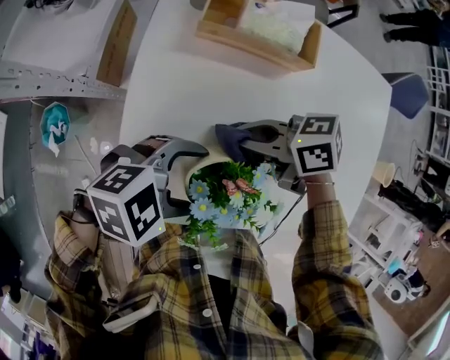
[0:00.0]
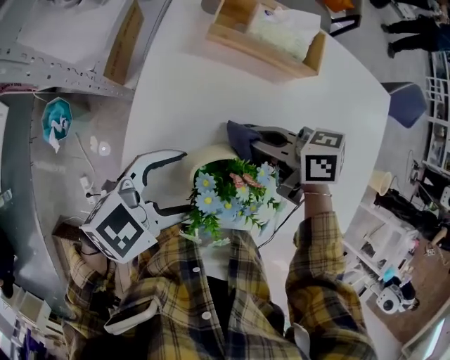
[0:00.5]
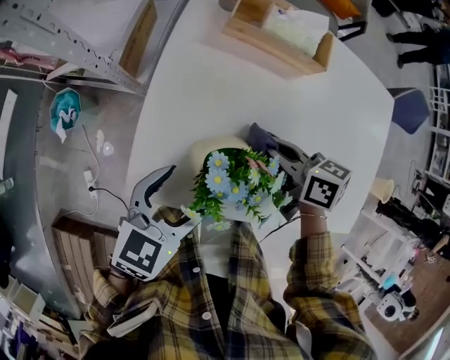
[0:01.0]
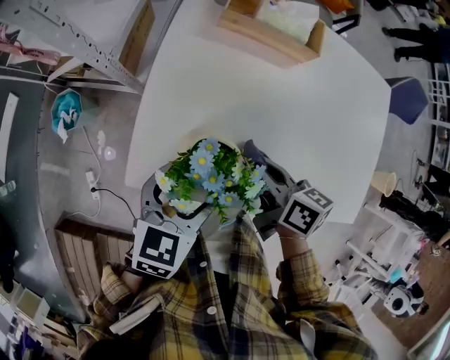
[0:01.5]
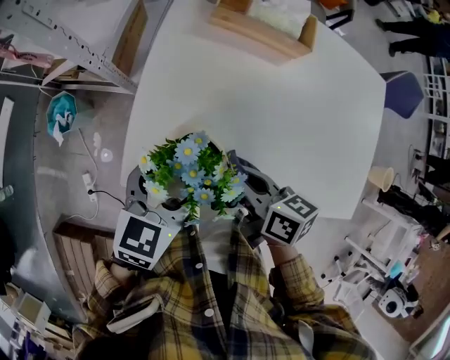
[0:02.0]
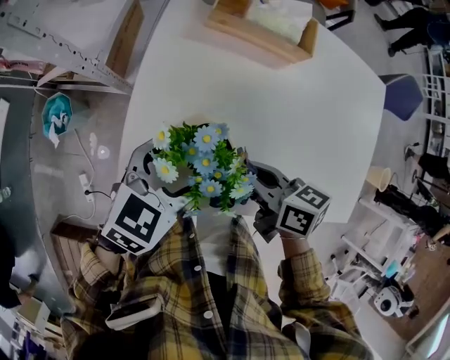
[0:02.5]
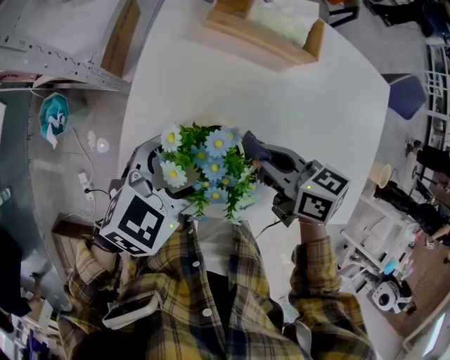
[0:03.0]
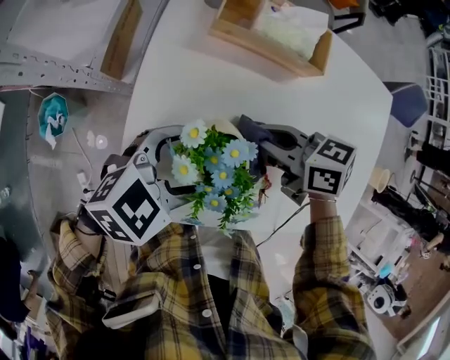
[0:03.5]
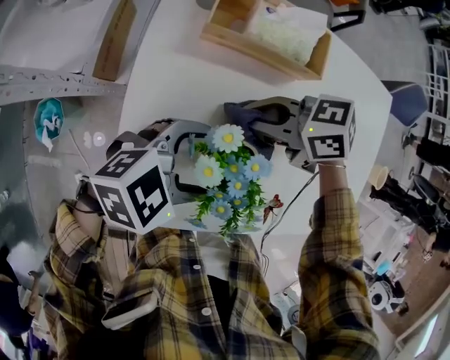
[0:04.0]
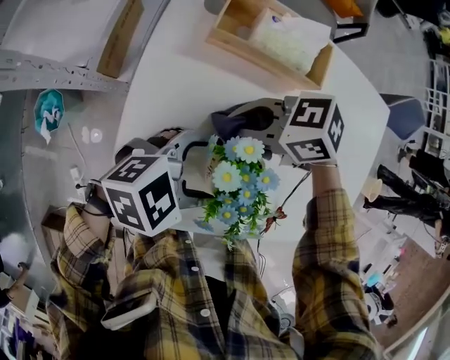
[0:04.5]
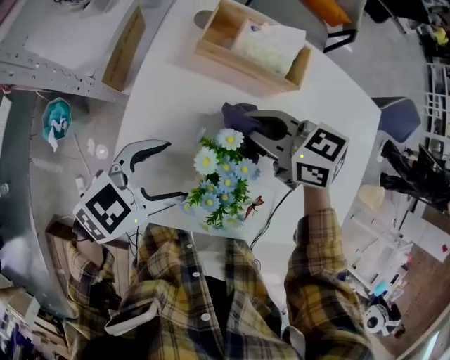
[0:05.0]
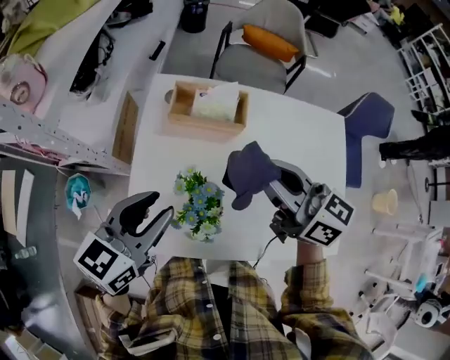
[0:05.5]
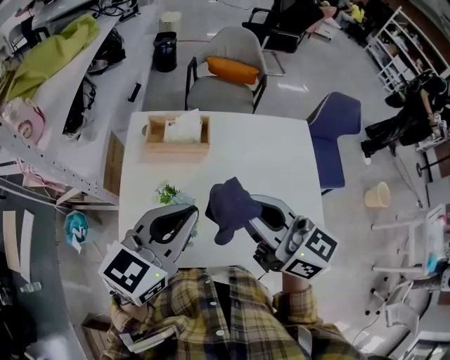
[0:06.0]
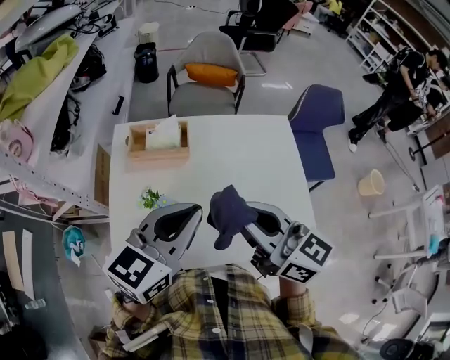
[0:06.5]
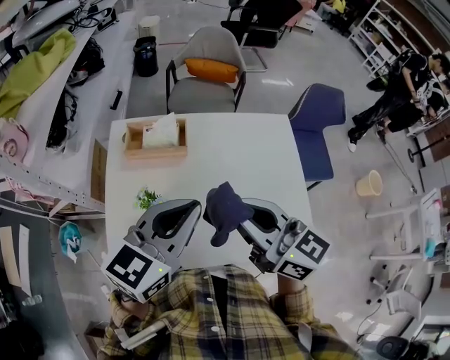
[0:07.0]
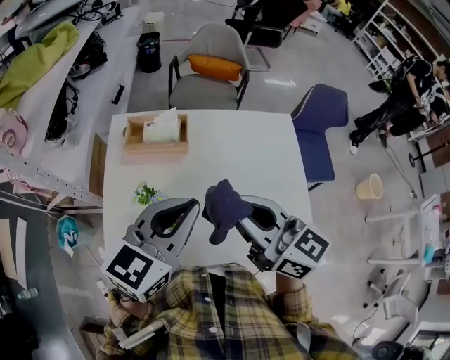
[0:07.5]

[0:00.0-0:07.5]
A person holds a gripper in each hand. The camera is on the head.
0:00.0 to 0:02.0: The left gripper shifts by about 5 cm, and turns by about 60 degrees; the right gripper moves some 10 cm, and turns by approximately 40 degrees.
0:02.0 to 0:04.0: The right gripper moves approximately 15 cm, and swivels about 50 degrees. The left gripper moves some 10 cm, and changes its angle by about 60 degrees.
0:04.0 to 0:05.5: Both grippers move upward, approximately 20 cm. The right gripper swivels approximately 50 degrees. The left gripper changes its angle by roughly 50 degrees, and closes its fingers.
0:05.5 to 0:07.5: The right gripper is displaced backward, to the right and upward by about 15 cm, while the left gripper is displaced to the right and upward by roughly 20 cm, and closes up.

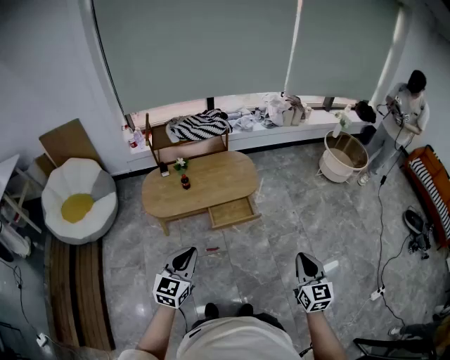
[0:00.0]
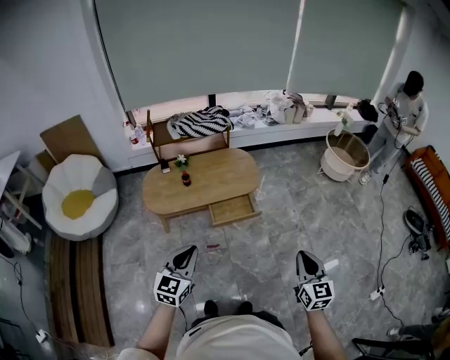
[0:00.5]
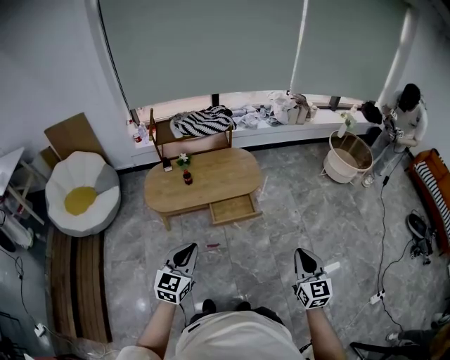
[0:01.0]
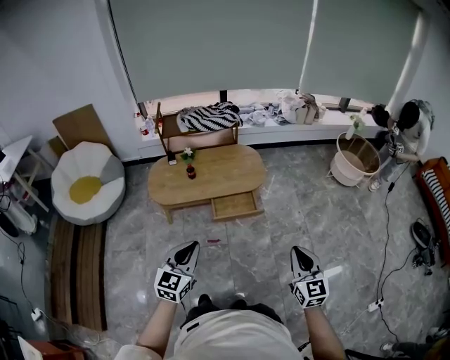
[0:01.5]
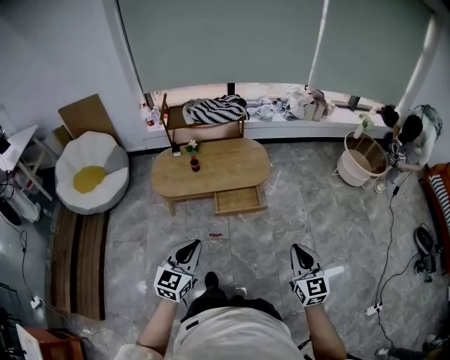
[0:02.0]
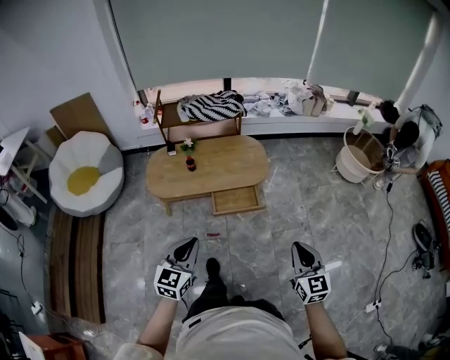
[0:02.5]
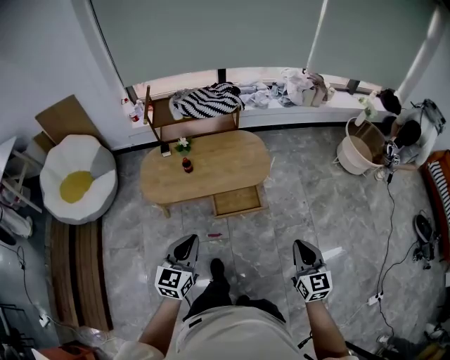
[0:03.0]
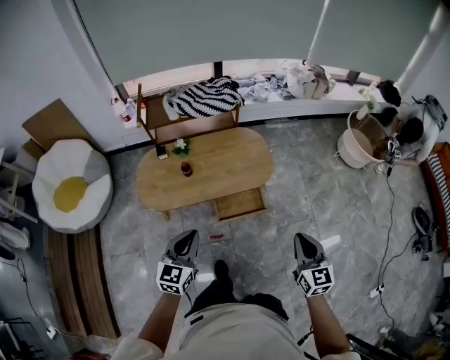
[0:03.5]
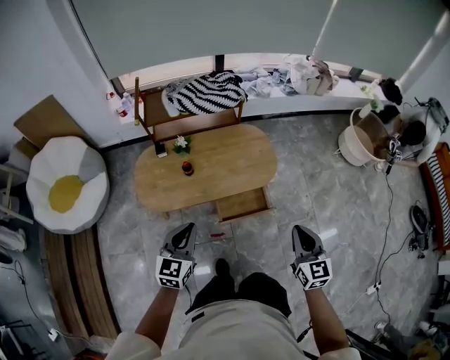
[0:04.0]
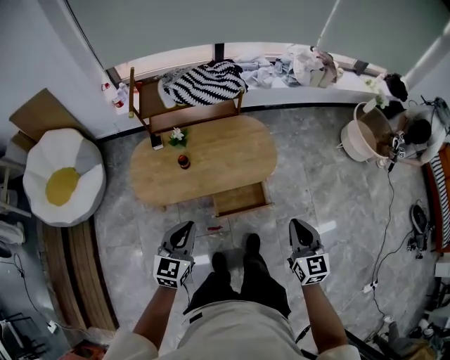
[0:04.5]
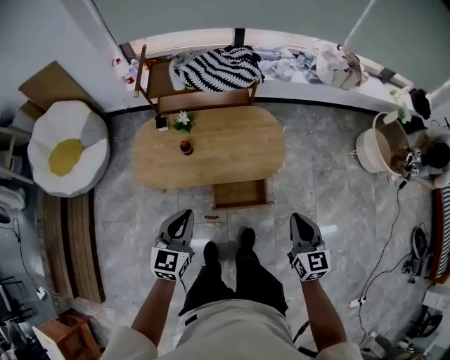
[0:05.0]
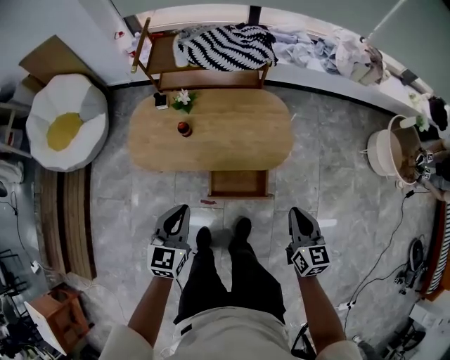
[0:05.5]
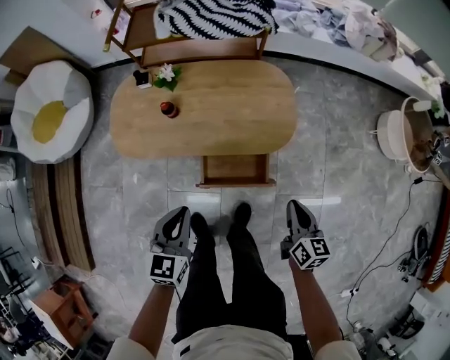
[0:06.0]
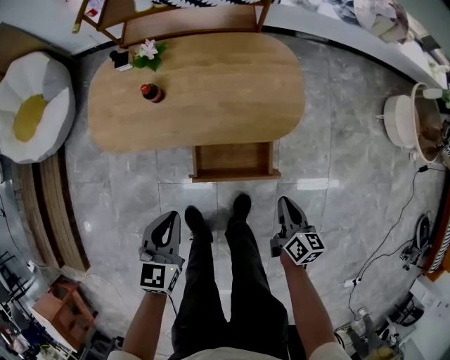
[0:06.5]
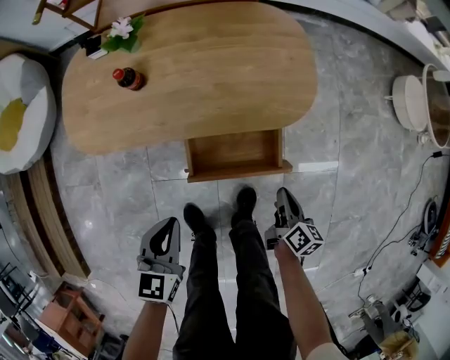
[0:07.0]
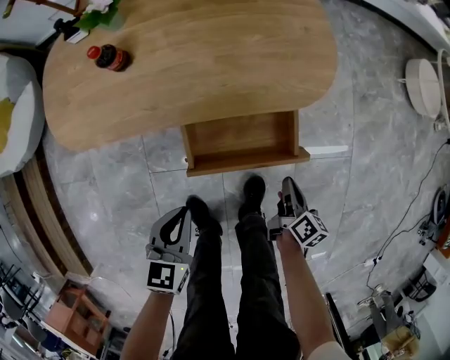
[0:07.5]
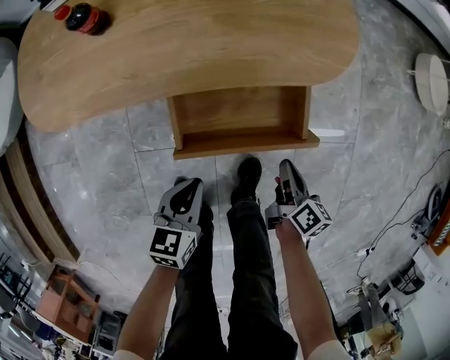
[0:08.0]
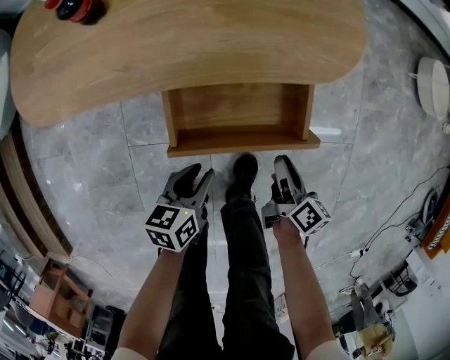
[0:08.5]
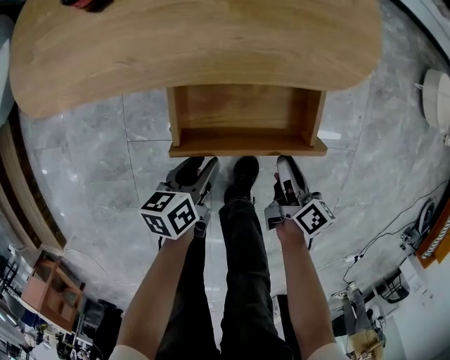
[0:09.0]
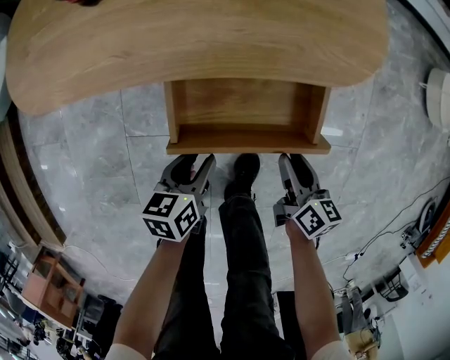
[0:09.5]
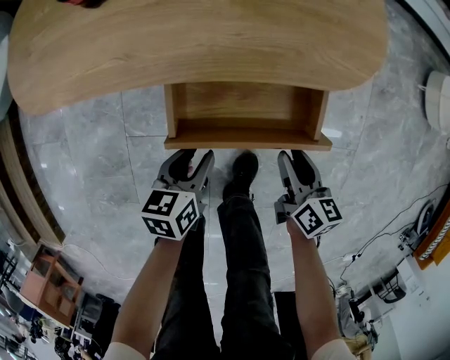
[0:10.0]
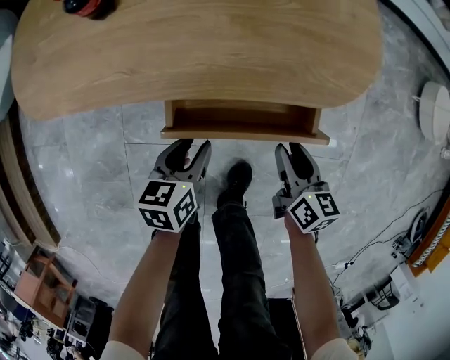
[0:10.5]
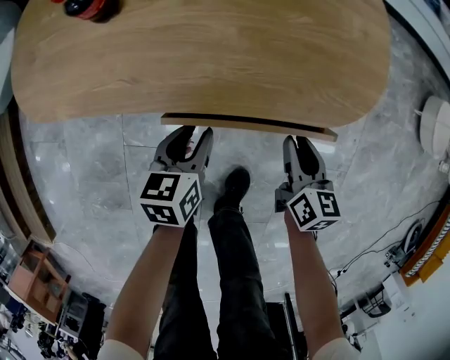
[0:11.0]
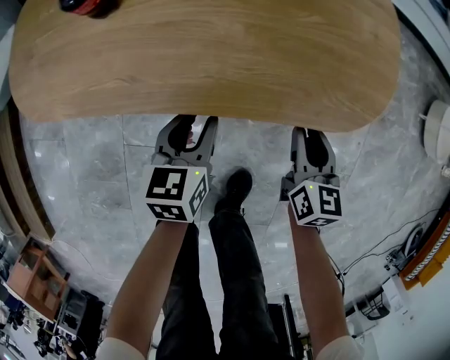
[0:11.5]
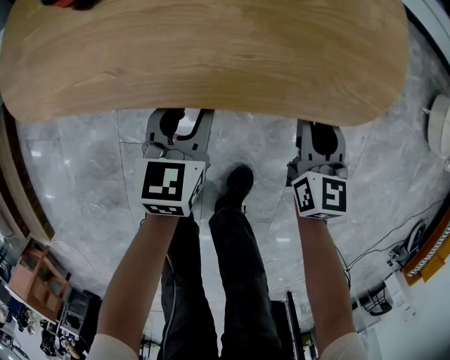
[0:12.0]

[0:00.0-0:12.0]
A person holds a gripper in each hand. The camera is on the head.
0:00.0 to 0:02.0: The left gripper goes approximately 5 cm to the right.
0:02.0 to 0:04.0: The grippers both shift forward and to the left by approximately 35 cm.
0:04.0 to 0:06.0: The left gripper goes about 20 cm downward, to the right and forward. The right gripper moves downward, forward and to the right, roughly 30 cm, and changes its angle by roughly 30 degrees.
0:06.0 to 0:08.0: Both grippers move downward, approximately 40 cm. The left gripper changes its angle by roughly 20 degrees. Meanwhile the right gripper rotates some 30 degrees.
0:08.0 to 0:10.0: The left gripper heads downward, covering about 5 cm, and opens up; the right gripper swivels roughly 20 degrees, and opens.
0:10.0 to 0:12.0: Both grippers travel together forward, approximately 15 cm. The right gripper swivels about 30 degrees; the left gripper rotates some 30 degrees.

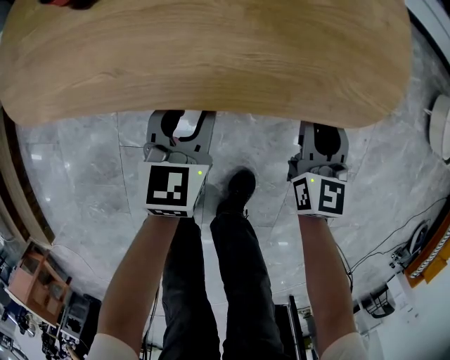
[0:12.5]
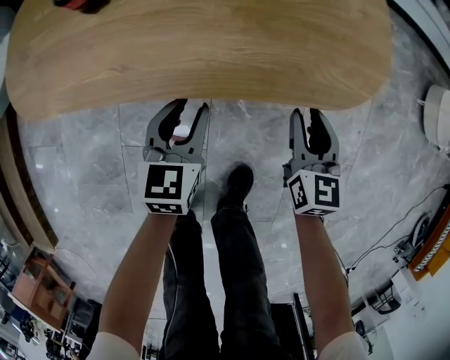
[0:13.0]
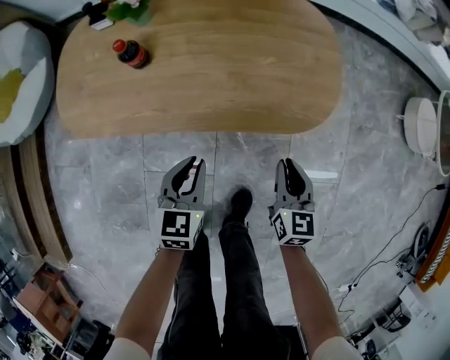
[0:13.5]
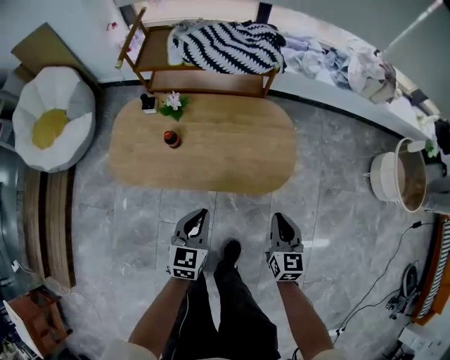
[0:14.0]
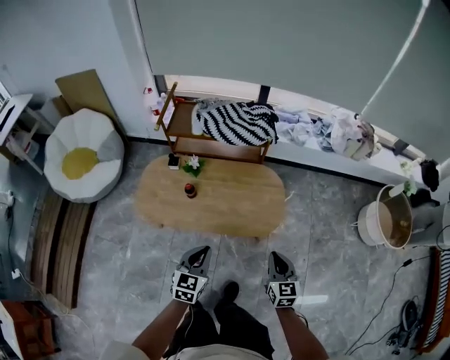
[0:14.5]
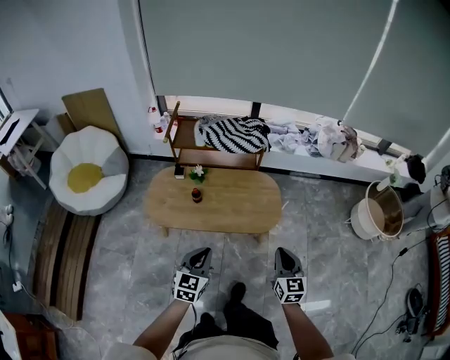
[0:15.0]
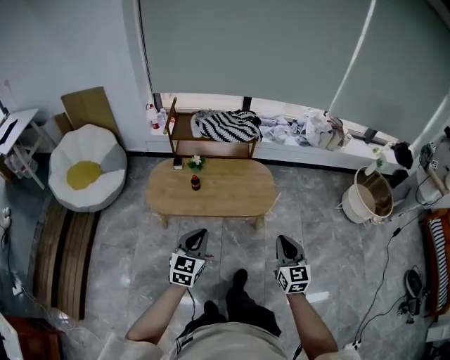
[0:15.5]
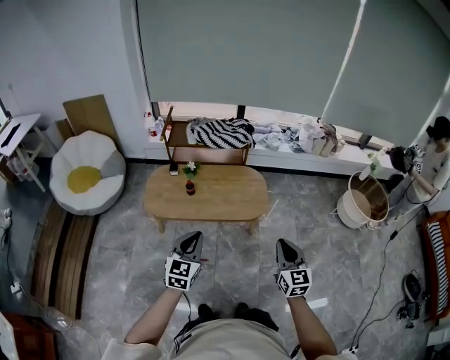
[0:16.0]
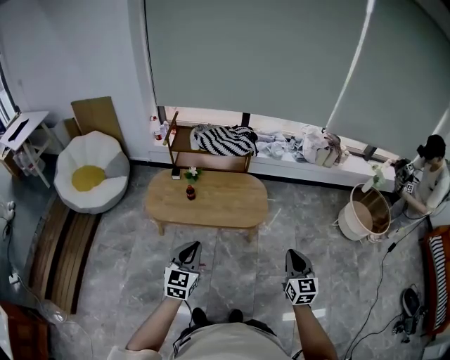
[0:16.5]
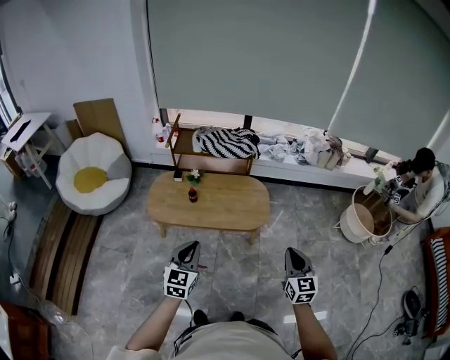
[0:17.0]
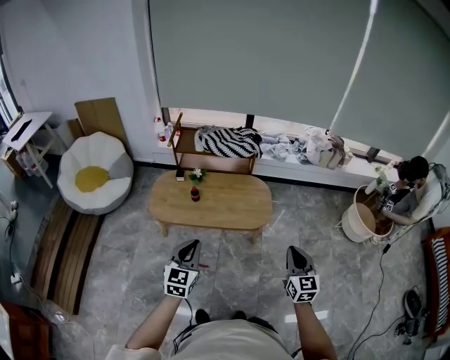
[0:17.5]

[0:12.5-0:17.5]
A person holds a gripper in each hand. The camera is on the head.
0:12.5 to 0:15.0: The two grippers go about 70 cm upward and backward. The right gripper closes up. Meanwhile the left gripper closes its fingers.
0:15.0 to 0:17.5: The left gripper shifts approximately 15 cm backward and upward, while the right gripper goes roughly 20 cm backward, upward and to the right.

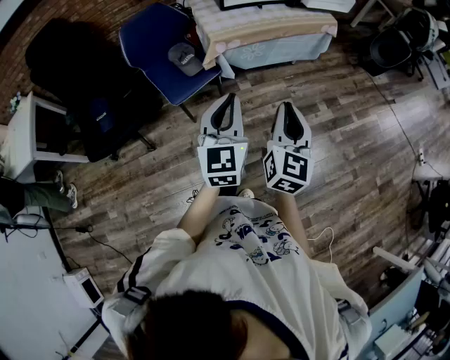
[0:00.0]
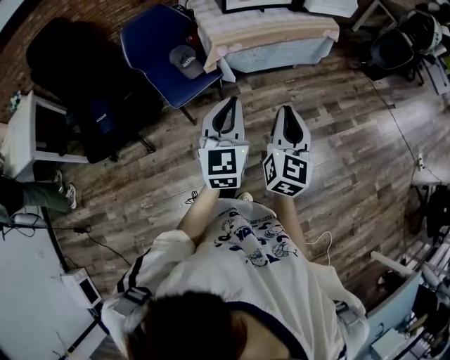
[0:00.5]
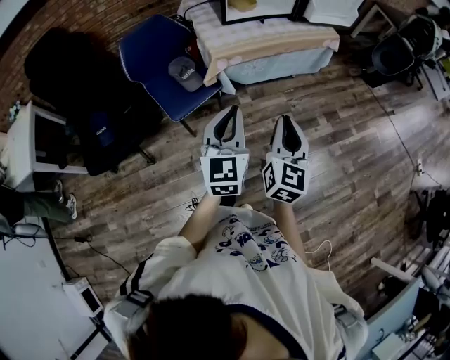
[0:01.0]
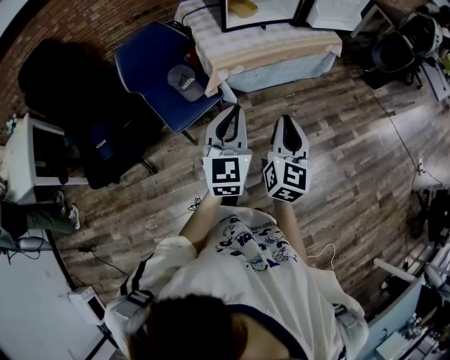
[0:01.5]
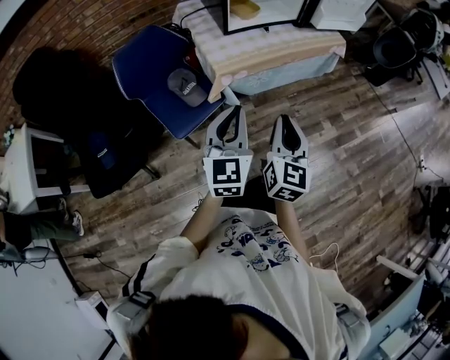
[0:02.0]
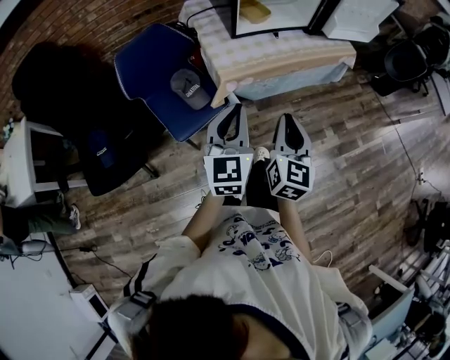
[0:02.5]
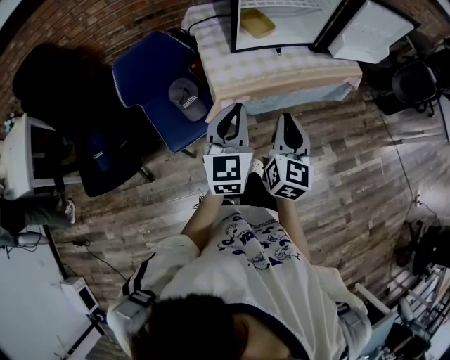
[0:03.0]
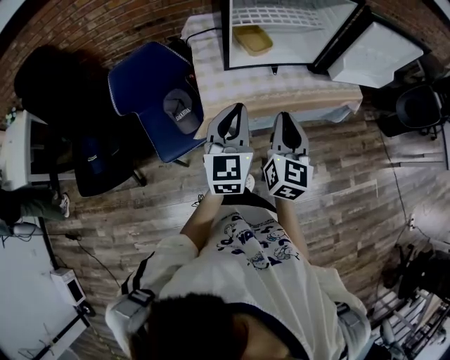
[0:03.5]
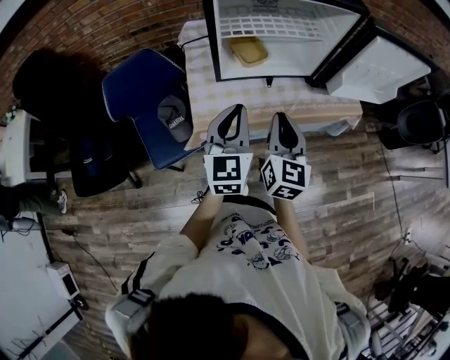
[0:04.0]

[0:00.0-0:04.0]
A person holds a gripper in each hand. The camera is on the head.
0:00.0 to 0:02.0: The left gripper shifts some 15 cm forward. The right gripper moves forward and to the left, approximately 20 cm.
0:02.0 to 0:04.0: Both grippers move forward, some 35 cm.
